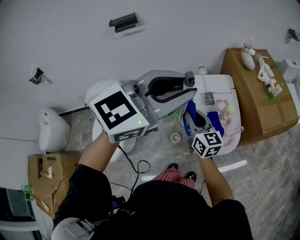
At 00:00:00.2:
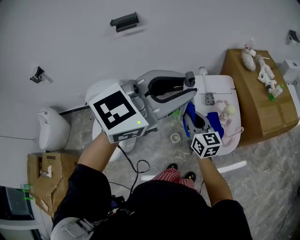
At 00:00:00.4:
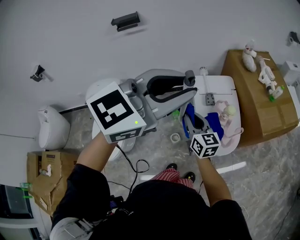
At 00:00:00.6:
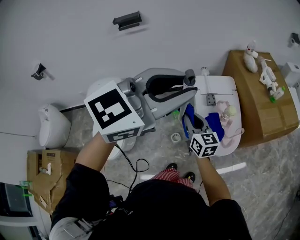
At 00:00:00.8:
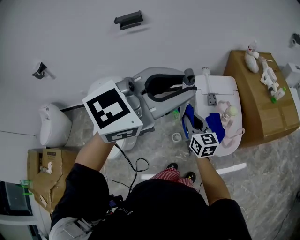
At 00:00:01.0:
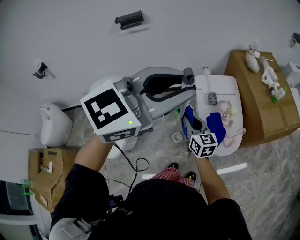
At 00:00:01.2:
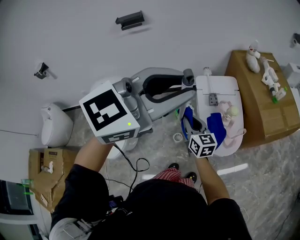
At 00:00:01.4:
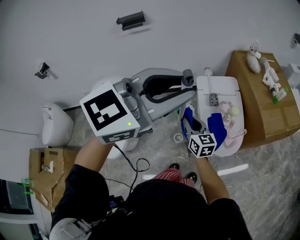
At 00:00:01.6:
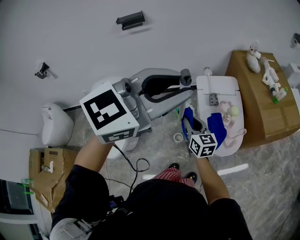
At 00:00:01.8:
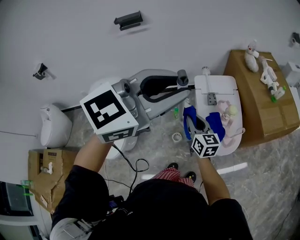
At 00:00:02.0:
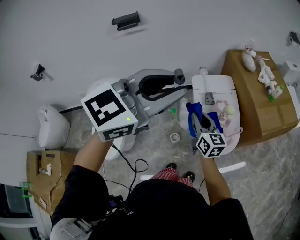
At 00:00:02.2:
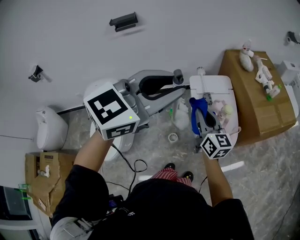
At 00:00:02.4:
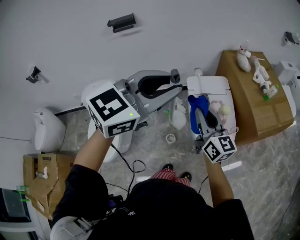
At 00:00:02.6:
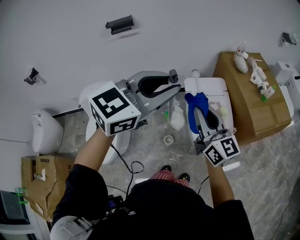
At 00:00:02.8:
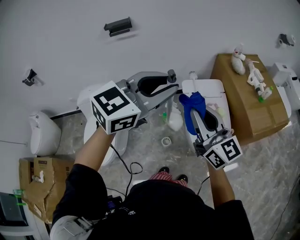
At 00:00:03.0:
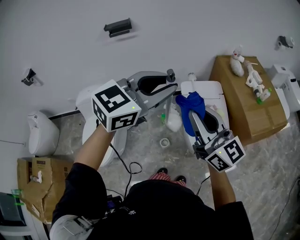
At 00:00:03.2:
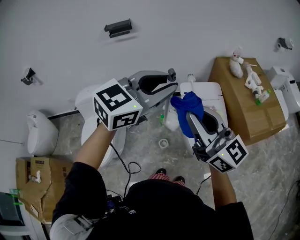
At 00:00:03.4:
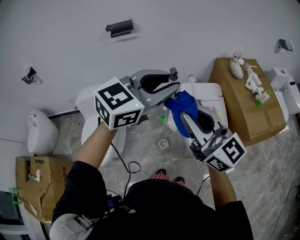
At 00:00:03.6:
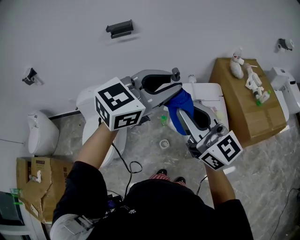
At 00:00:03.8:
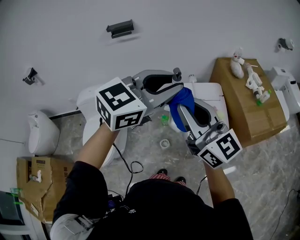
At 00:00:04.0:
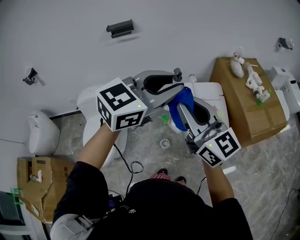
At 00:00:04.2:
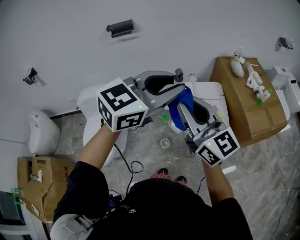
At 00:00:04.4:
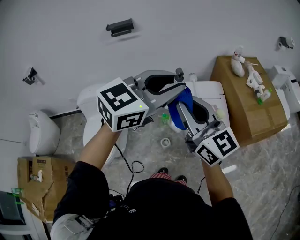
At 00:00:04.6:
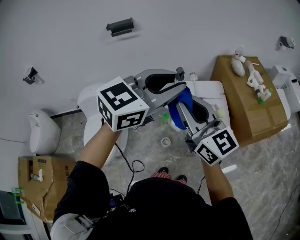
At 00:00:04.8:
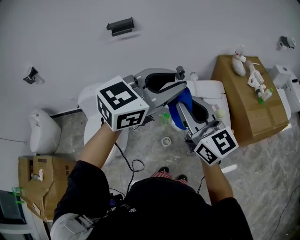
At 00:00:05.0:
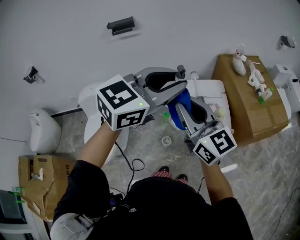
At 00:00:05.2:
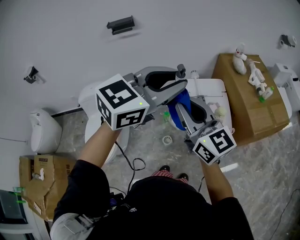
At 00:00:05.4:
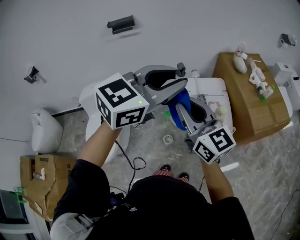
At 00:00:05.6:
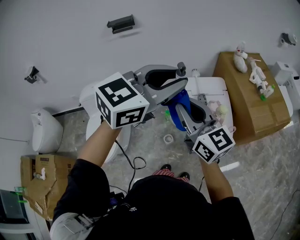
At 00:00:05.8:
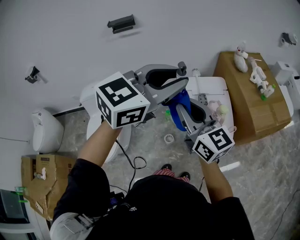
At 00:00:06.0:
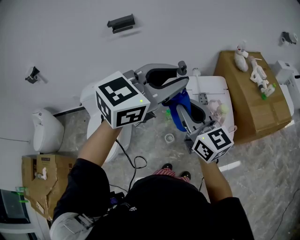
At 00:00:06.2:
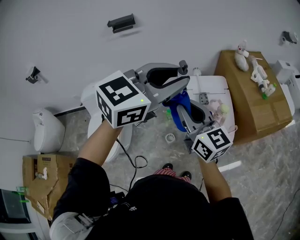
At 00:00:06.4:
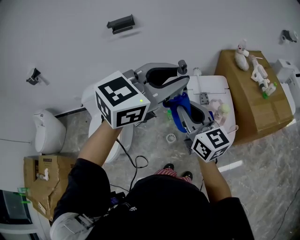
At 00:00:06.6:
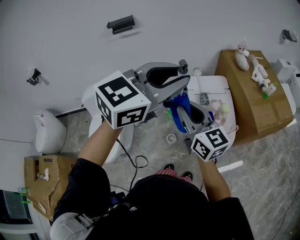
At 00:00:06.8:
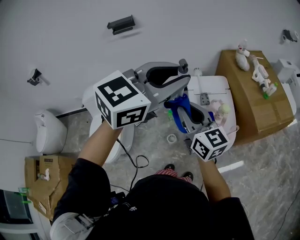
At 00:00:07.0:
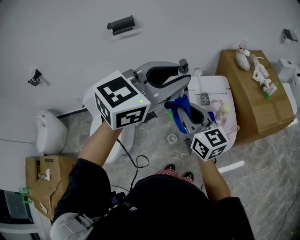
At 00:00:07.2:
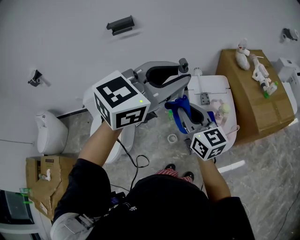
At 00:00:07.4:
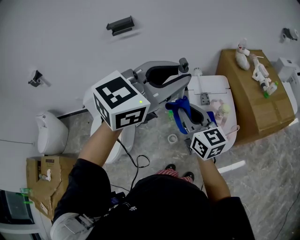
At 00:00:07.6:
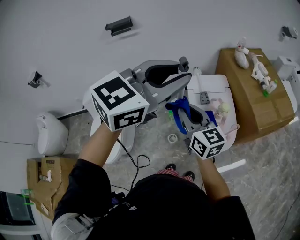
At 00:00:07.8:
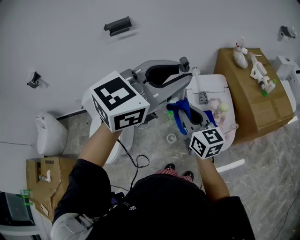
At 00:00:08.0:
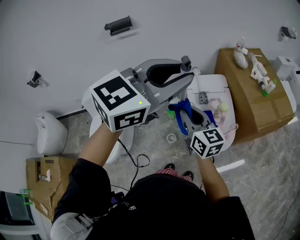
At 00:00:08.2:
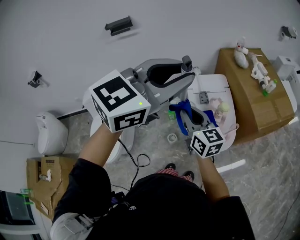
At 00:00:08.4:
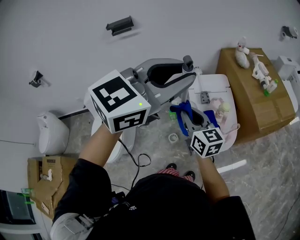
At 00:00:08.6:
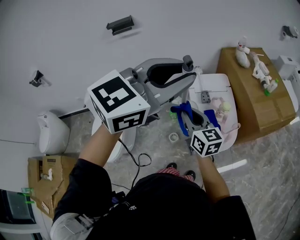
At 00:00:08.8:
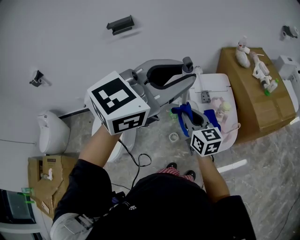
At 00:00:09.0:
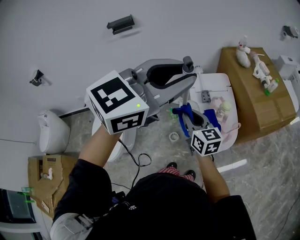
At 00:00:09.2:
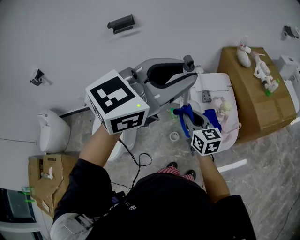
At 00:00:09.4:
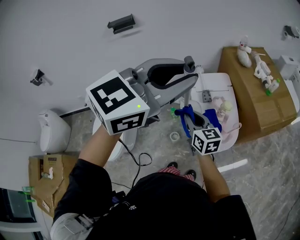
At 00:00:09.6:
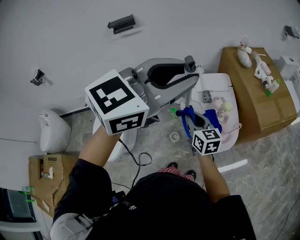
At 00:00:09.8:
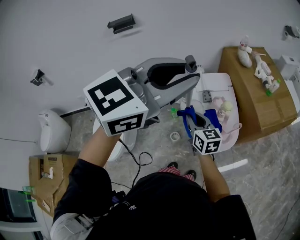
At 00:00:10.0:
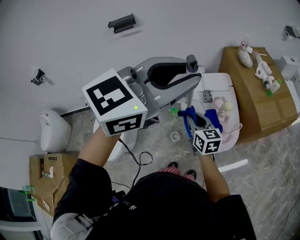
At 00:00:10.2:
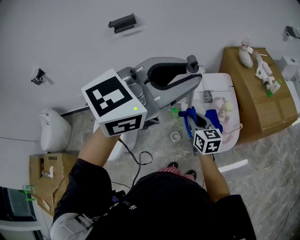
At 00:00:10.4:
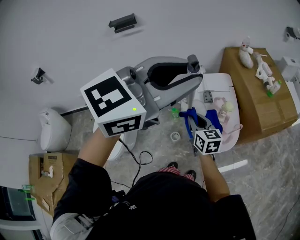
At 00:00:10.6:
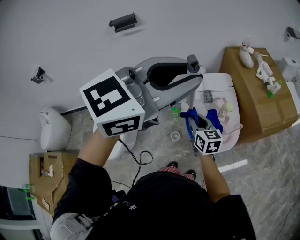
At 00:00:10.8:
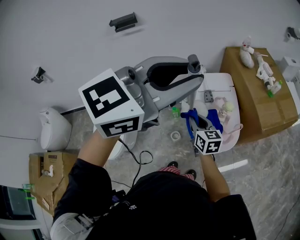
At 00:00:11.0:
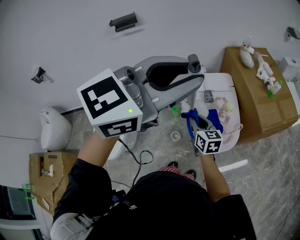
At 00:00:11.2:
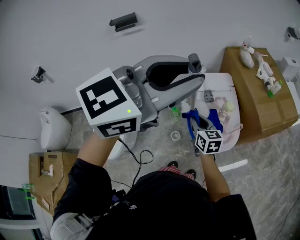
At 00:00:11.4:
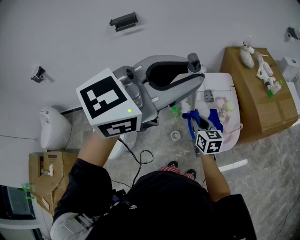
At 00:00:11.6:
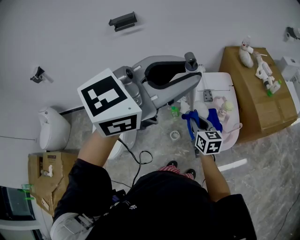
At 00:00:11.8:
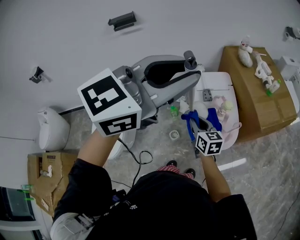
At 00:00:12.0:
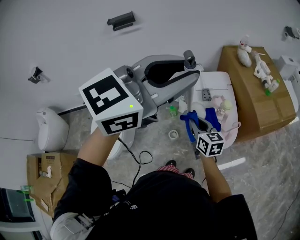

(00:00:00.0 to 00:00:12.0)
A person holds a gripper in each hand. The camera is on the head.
00:00:00.0 - 00:00:01.6: The right gripper moves downward, approximately 5 cm.
00:00:01.6 - 00:00:03.0: The right gripper goes approximately 25 cm upward, and rotates roughly 30 degrees; the left gripper shifts by about 5 cm.
00:00:03.0 - 00:00:04.4: The right gripper ends up about 5 cm from where it was.
00:00:04.4 - 00:00:06.0: The right gripper goes some 5 cm downward.
00:00:06.0 - 00:00:07.6: The right gripper shifts approximately 5 cm downward.
00:00:07.6 - 00:00:09.0: The right gripper is displaced downward by about 5 cm.
00:00:09.0 - 00:00:10.4: The right gripper shifts approximately 5 cm downward.
00:00:10.4 - 00:00:12.0: The grippers move only a little.

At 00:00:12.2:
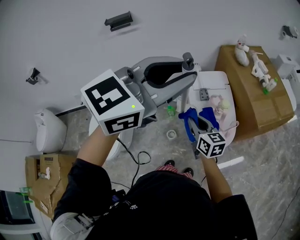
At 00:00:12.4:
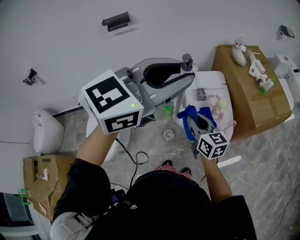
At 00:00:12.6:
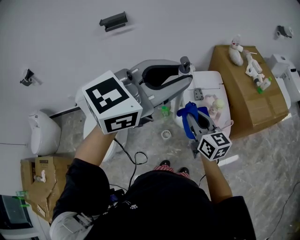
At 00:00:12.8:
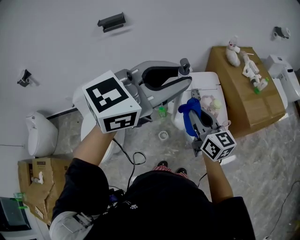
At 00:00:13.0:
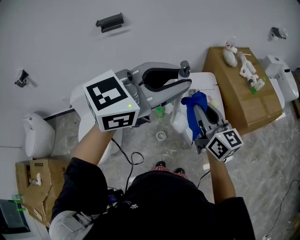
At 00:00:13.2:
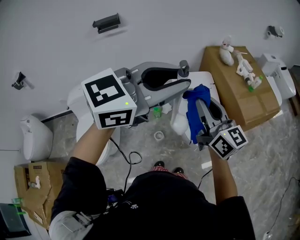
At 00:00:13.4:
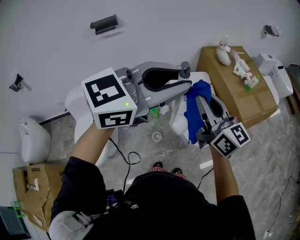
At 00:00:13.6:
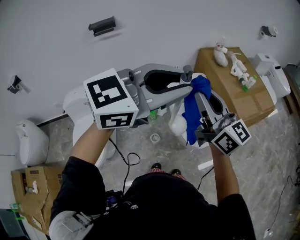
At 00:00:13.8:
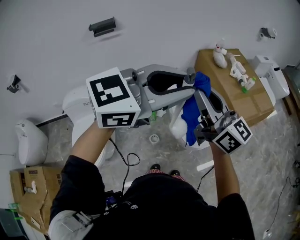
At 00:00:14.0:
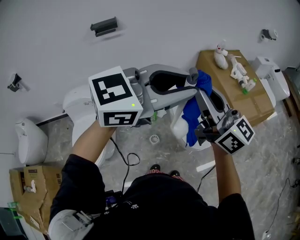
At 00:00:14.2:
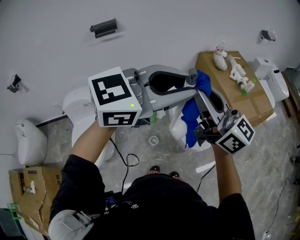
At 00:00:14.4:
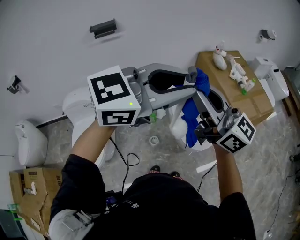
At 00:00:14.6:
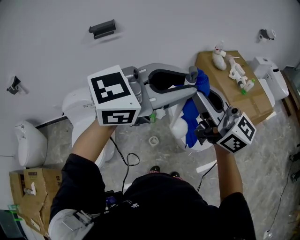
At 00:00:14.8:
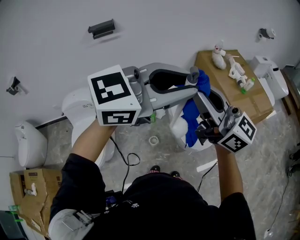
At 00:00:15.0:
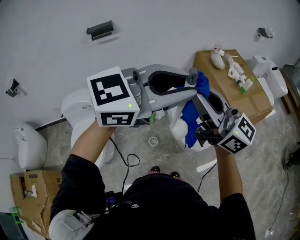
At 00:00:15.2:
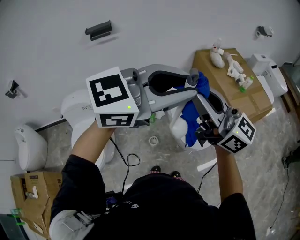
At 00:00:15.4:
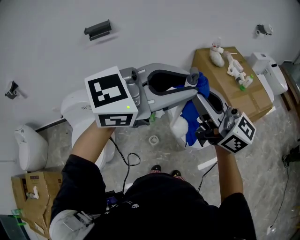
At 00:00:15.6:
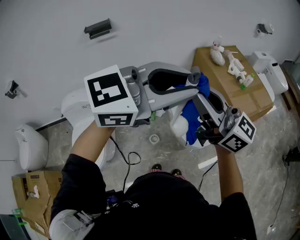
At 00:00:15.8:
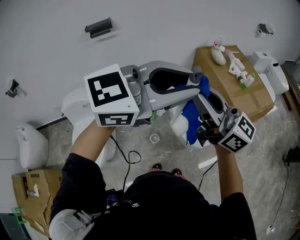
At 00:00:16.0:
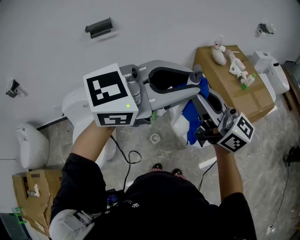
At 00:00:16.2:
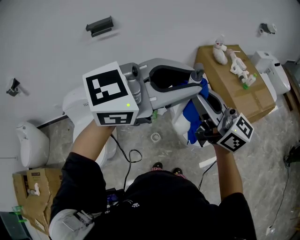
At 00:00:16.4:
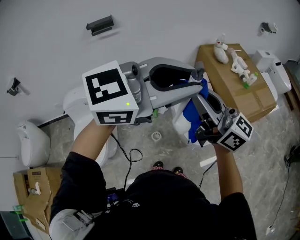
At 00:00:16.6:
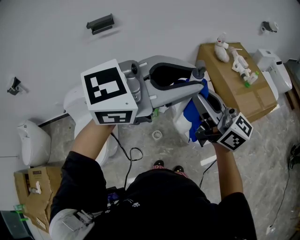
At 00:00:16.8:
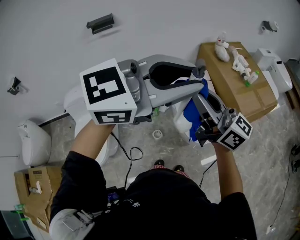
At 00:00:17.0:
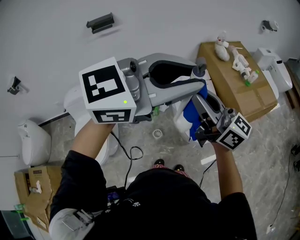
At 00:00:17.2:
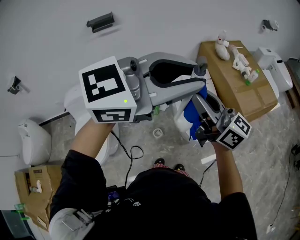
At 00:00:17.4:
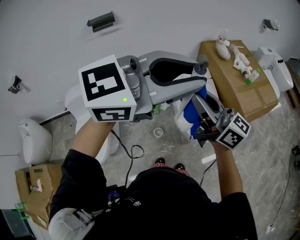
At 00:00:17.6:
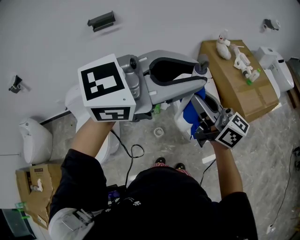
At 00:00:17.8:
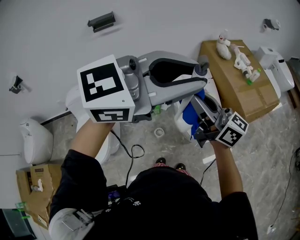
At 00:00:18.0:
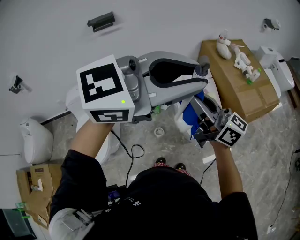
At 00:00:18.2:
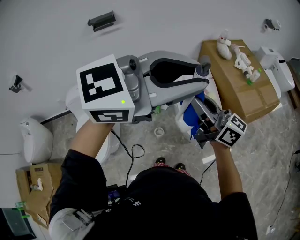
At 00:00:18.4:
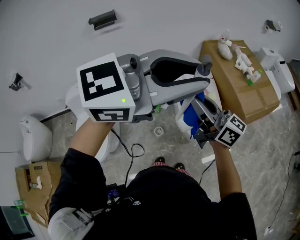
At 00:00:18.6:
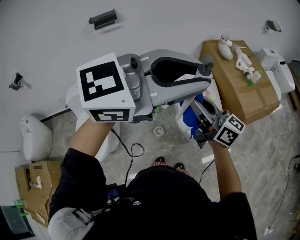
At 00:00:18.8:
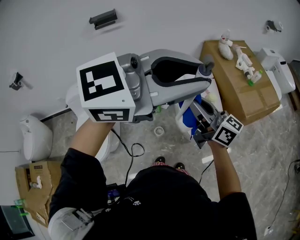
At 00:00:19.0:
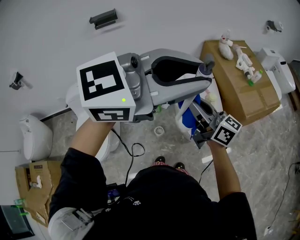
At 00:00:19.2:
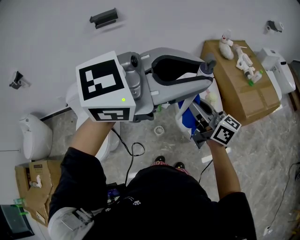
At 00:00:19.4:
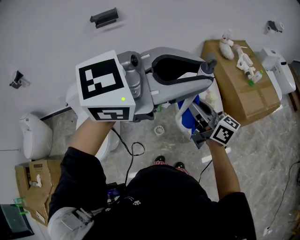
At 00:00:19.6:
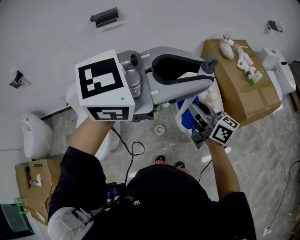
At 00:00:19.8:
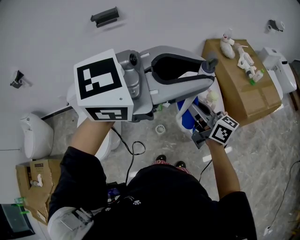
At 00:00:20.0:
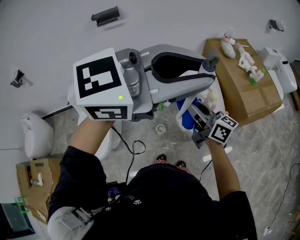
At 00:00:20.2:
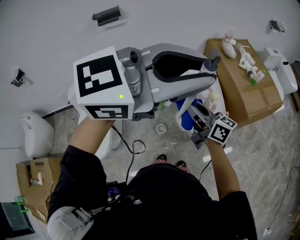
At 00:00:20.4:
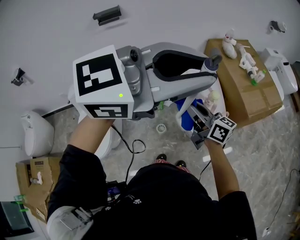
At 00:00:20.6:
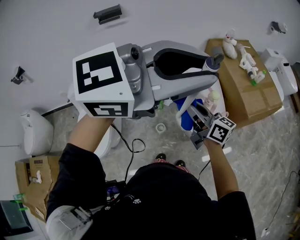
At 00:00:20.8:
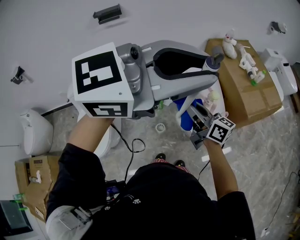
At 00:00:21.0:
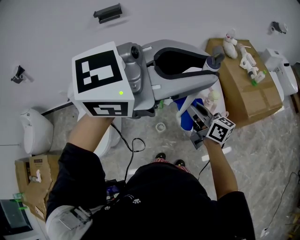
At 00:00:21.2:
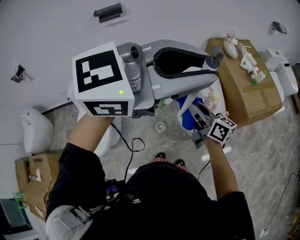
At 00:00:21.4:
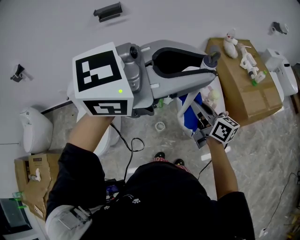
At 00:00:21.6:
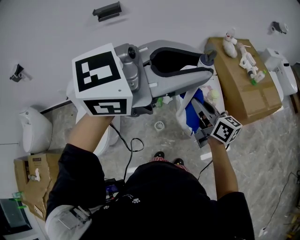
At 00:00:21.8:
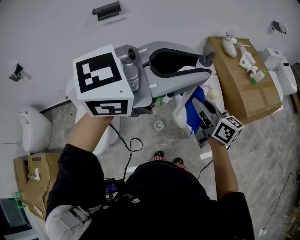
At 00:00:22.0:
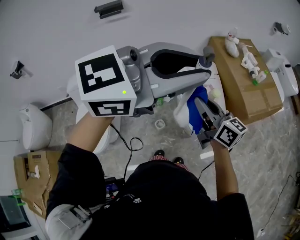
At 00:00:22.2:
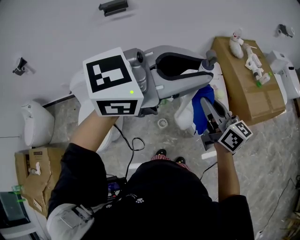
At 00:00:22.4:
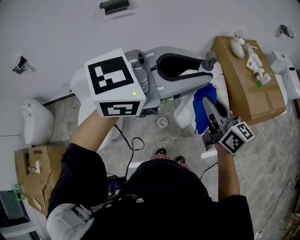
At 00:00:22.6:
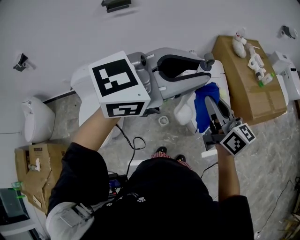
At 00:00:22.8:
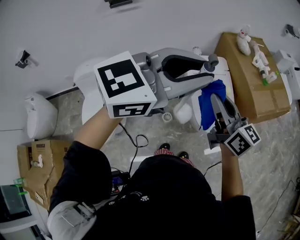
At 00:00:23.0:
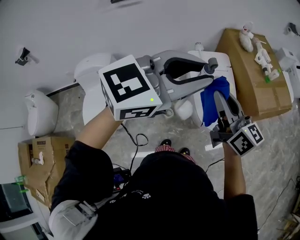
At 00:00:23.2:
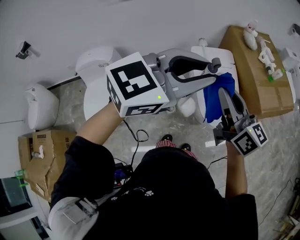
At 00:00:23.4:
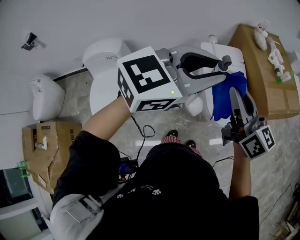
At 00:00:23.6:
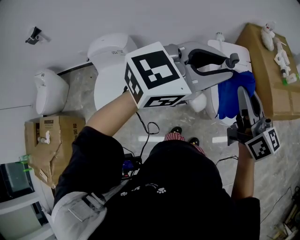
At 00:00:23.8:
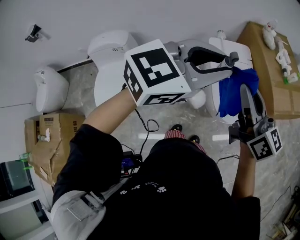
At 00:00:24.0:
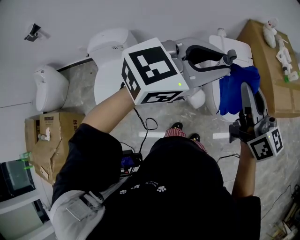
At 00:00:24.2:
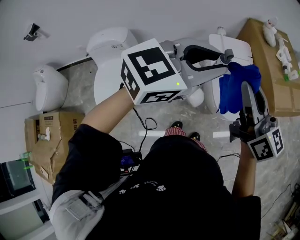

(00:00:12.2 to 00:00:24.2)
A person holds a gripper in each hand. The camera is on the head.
00:00:12.2 - 00:00:13.8: The right gripper goes approximately 25 cm upward, and tilts its fingers some 30 degrees upward.
00:00:13.8 - 00:00:15.2: The grippers make only small movements.
00:00:15.2 - 00:00:16.6: The right gripper changes place by some 5 cm.
00:00:16.6 - 00:00:18.2: The right gripper shifts approximately 5 cm downward.
00:00:18.2 - 00:00:19.8: The right gripper goes about 10 cm downward.
00:00:19.8 - 00:00:21.2: The grippers move only a little.
00:00:21.2 - 00:00:22.6: The left gripper moves downward, approximately 5 cm. Meanwhile the right gripper shifts roughly 10 cm upward.
00:00:22.6 - 00:00:24.2: The left gripper heads downward, covering approximately 10 cm.
